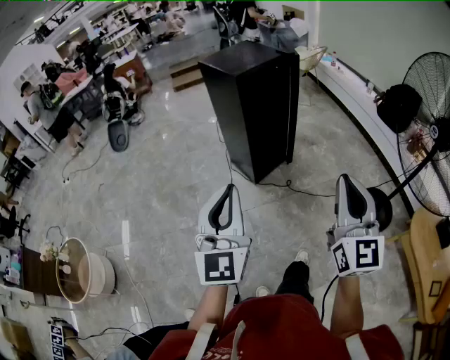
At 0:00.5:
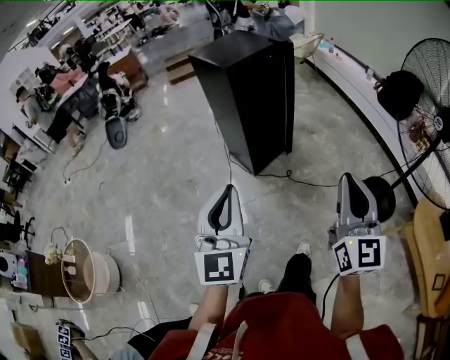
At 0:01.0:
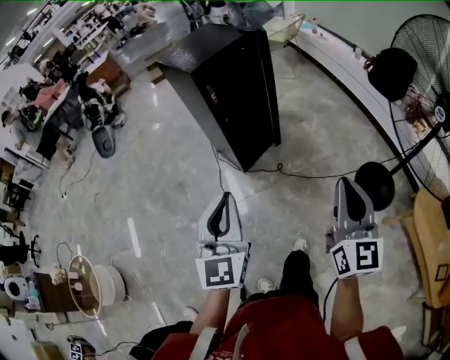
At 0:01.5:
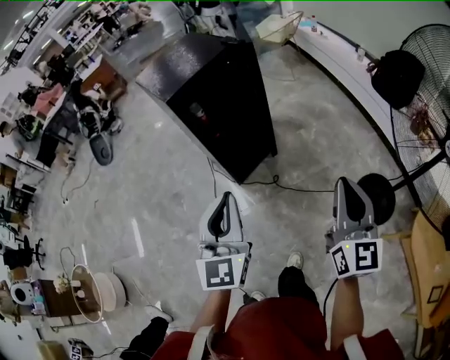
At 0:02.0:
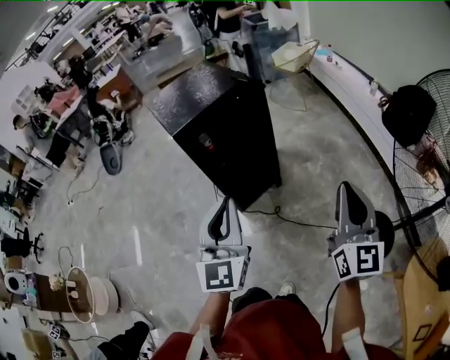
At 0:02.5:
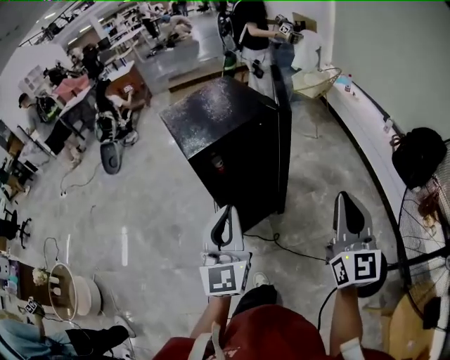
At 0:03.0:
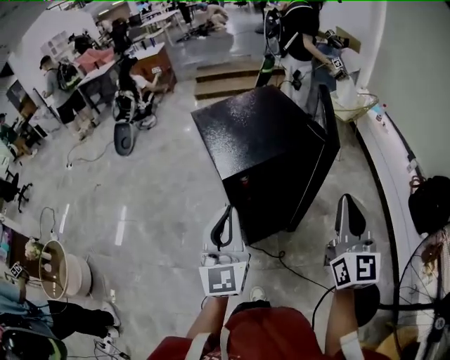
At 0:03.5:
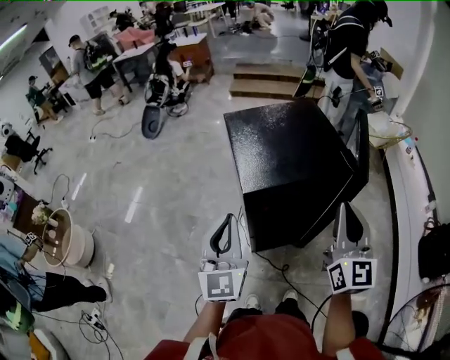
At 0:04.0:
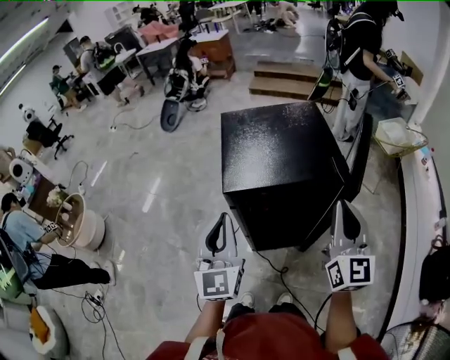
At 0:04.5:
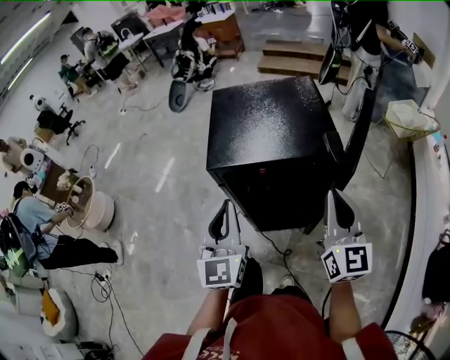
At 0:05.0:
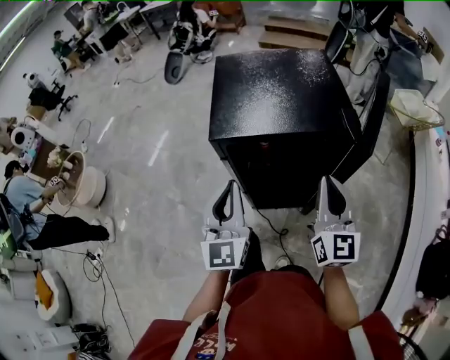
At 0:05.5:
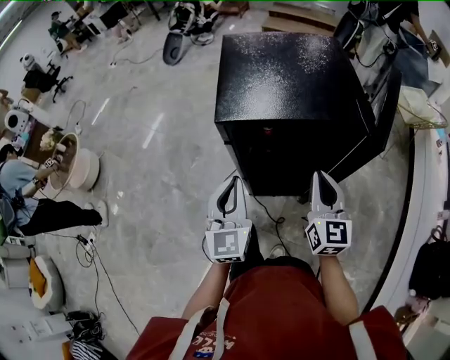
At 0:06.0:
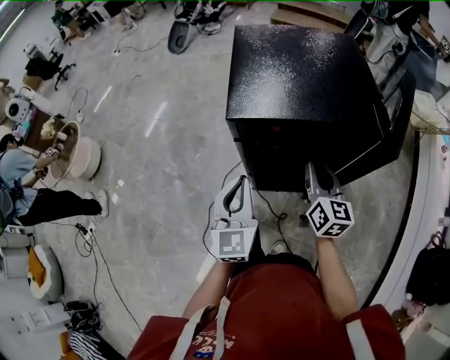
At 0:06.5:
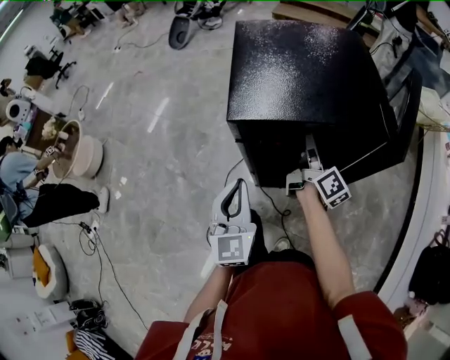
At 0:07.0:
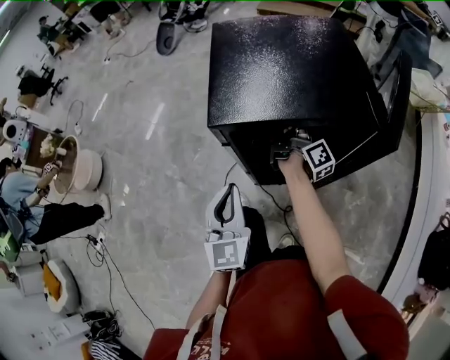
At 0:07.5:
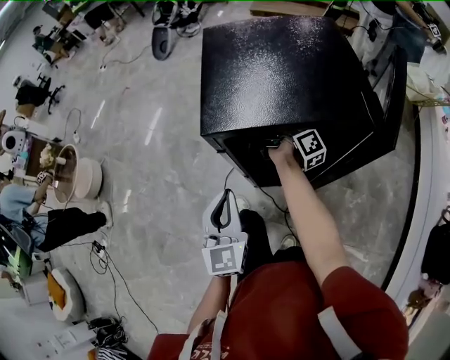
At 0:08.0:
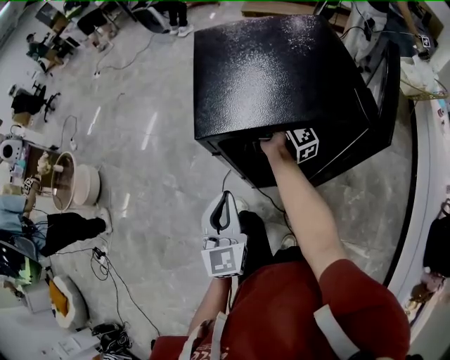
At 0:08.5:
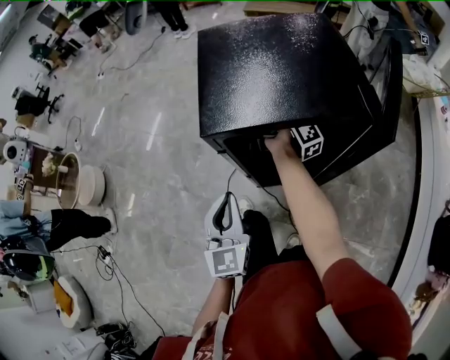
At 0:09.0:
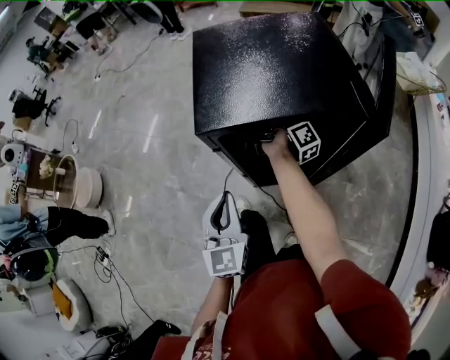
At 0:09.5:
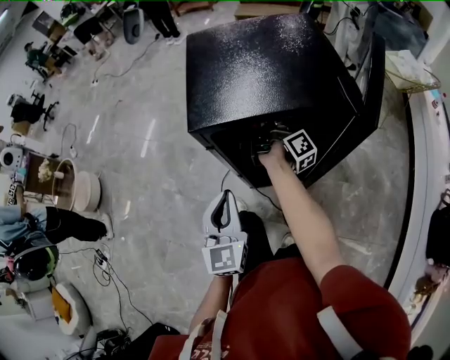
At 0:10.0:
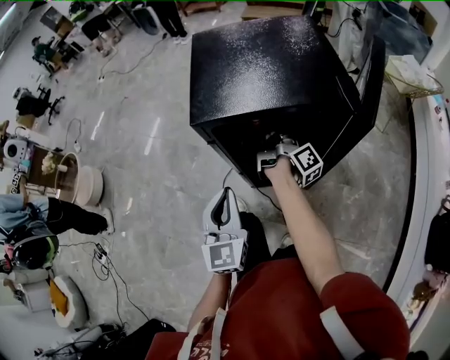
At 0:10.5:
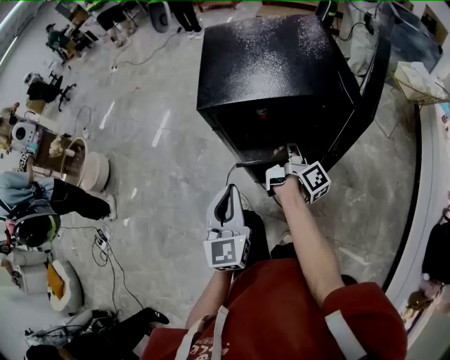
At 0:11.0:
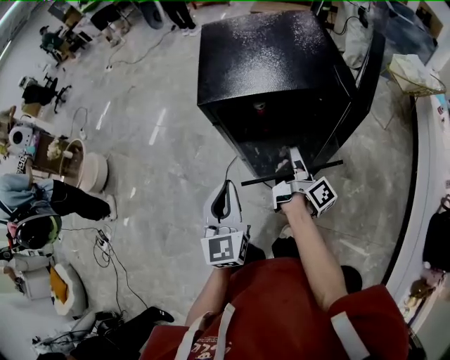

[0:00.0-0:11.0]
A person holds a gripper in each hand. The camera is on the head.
0:00.0 to 0:02.0: Both grippers move forward and to the right, approximately 40 cm.
0:02.0 to 0:03.5: The right gripper ends up roughly 40 cm from where it was, and rotates roughly 20 degrees. Meanwhile the left gripper ends up roughly 30 cm from where it was, and changes its angle by some 30 degrees.
0:03.5 to 0:05.5: The left gripper goes roughly 15 cm downward and to the right; the right gripper goes about 20 cm downward, and swivels approximately 20 degrees.
0:05.5 to 0:07.5: The right gripper moves forward, approximately 25 cm, rolls clockwise, seen from behind, by approximately 80 degrees, and opens its fingers.
0:07.5 to 0:09.0: The right gripper closes.
0:09.0 to 0:11.0: The right gripper moves backward, about 25 cm, while the left gripper goes roughly 5 cm backward.

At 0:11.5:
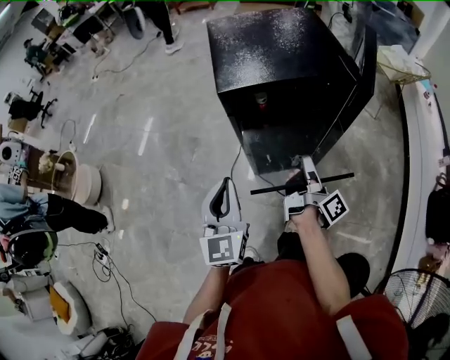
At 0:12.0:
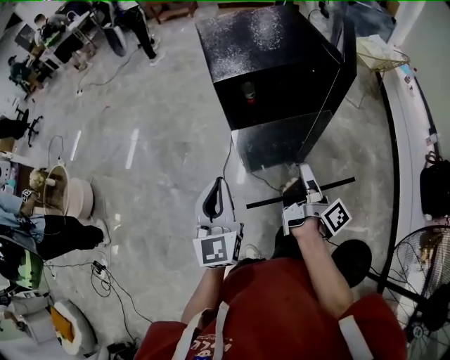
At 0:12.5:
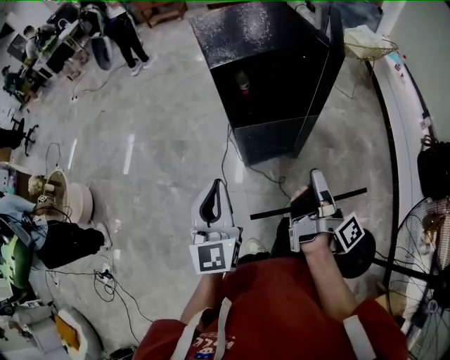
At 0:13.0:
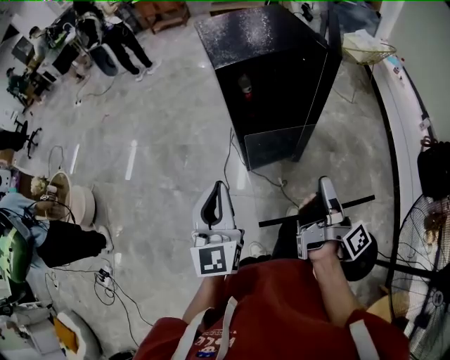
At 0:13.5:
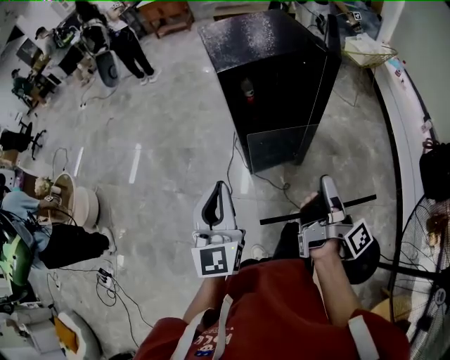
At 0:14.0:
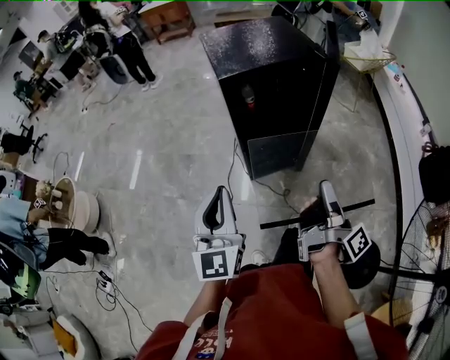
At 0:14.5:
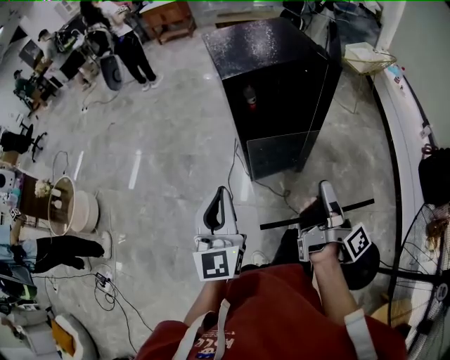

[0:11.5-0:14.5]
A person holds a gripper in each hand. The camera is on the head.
0:11.5 to 0:13.0: The right gripper travels backward and upward by approximately 25 cm, while the left gripper goes about 15 cm backward and upward.
0:13.0 to 0:14.5: The grippers make only small movements.

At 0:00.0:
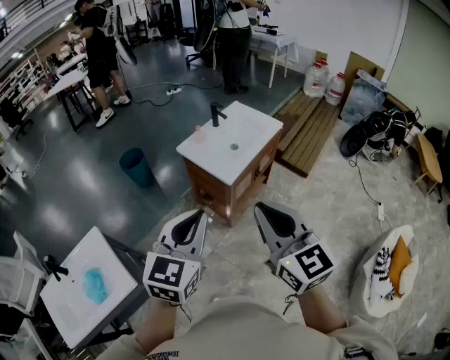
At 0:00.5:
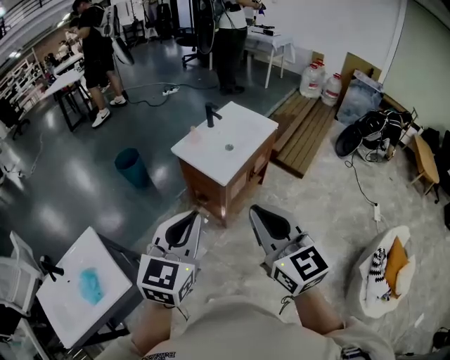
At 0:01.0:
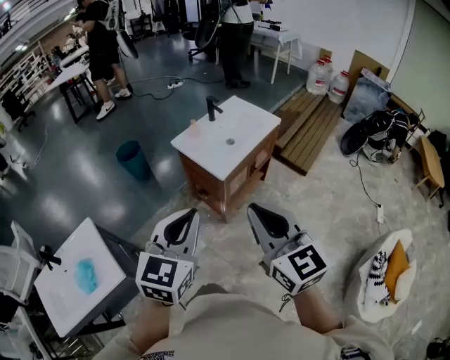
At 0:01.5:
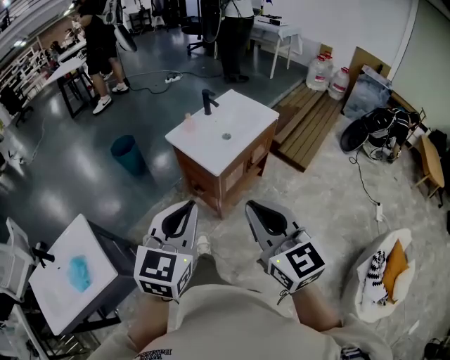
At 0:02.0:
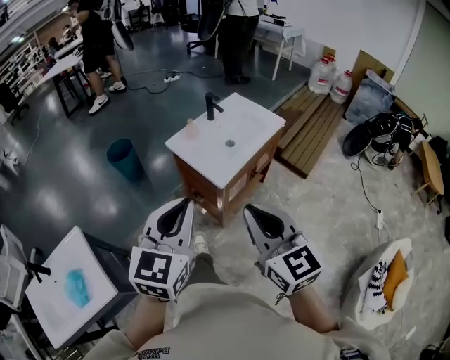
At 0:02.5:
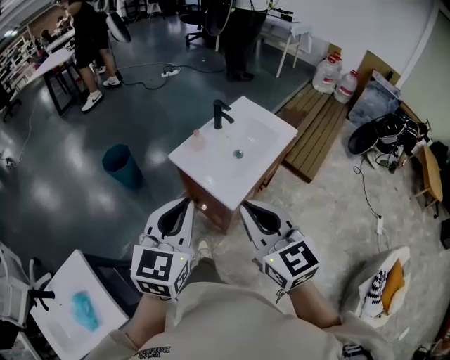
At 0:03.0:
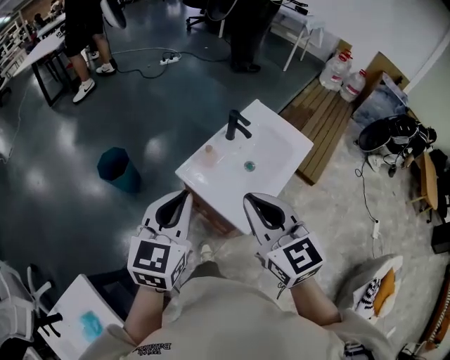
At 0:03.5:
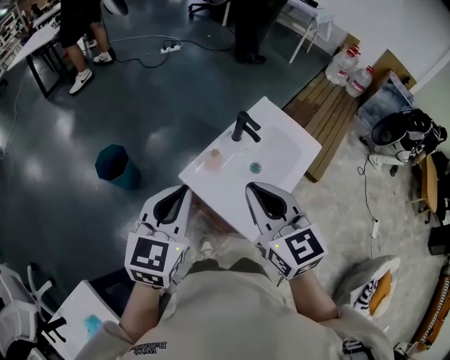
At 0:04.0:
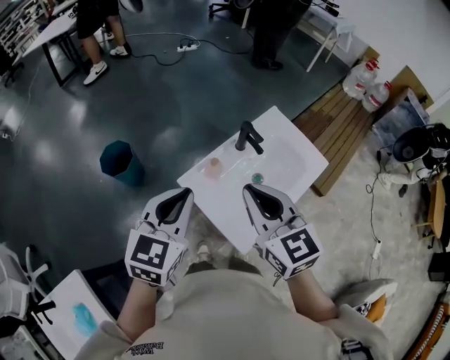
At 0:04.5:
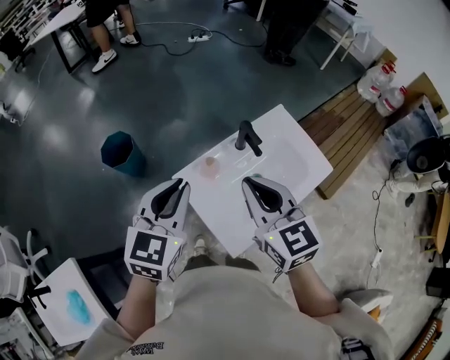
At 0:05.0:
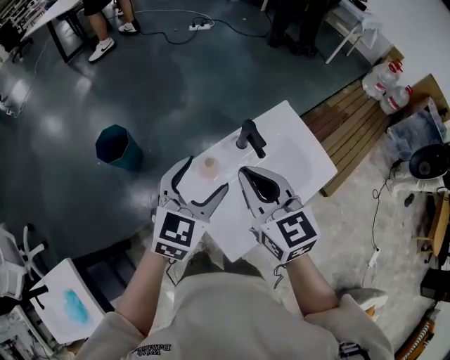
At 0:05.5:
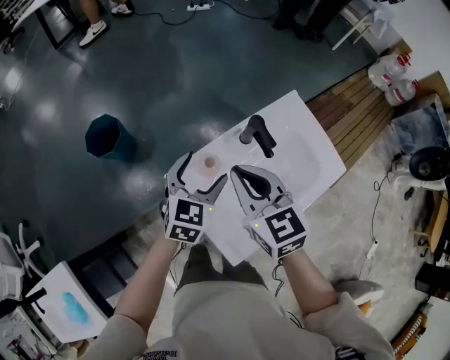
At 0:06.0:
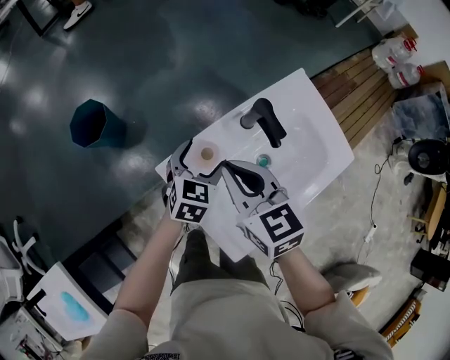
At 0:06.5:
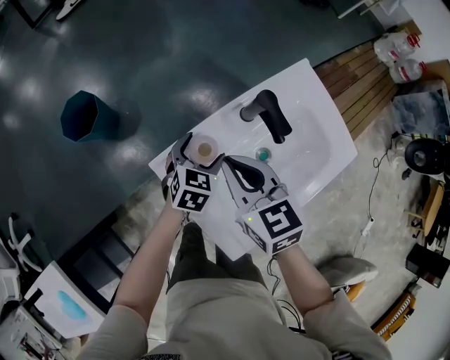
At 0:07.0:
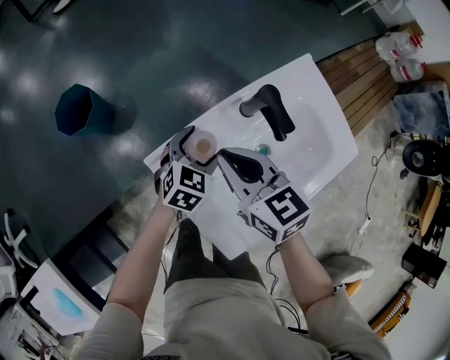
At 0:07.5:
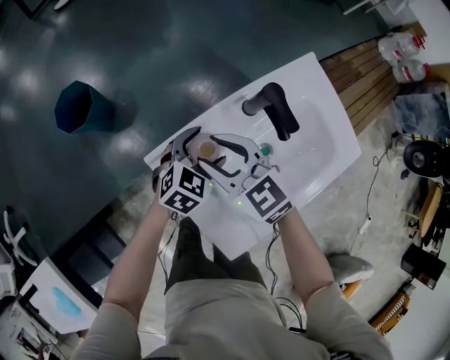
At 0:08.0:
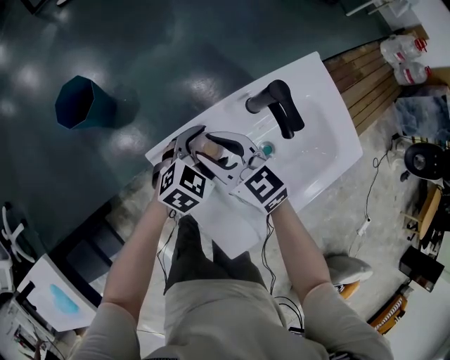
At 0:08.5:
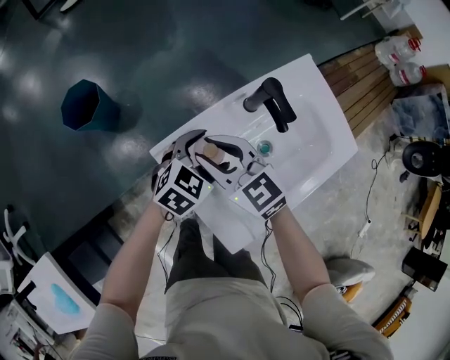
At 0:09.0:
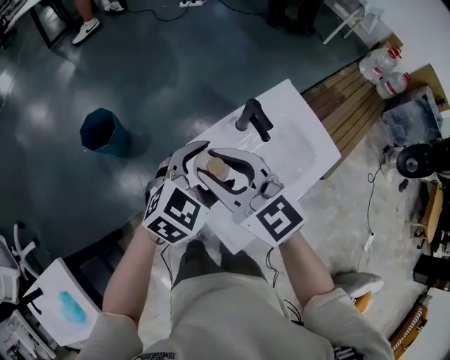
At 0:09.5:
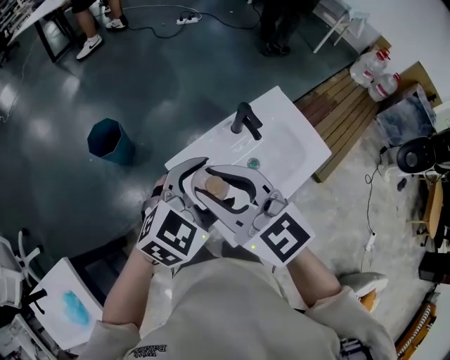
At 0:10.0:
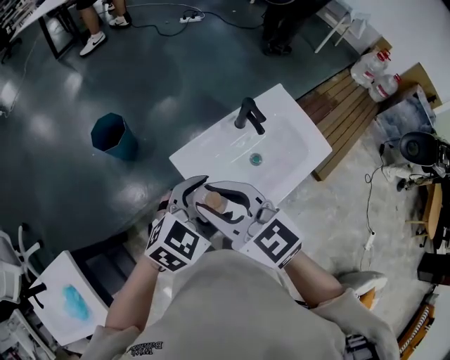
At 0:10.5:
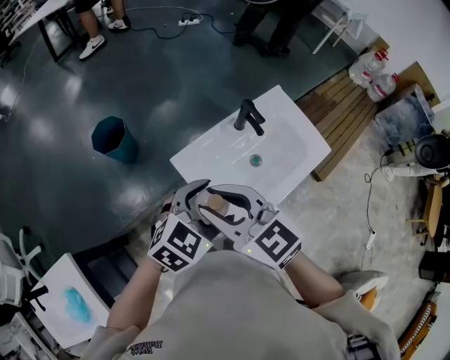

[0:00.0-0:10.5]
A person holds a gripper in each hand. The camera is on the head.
0:00.0 to 0:02.0: The right gripper heads forward and downward, covering about 15 cm. Meanwhile the left gripper goes some 10 cm forward.
0:02.0 to 0:04.0: Both grippers are carried forward, approximately 50 cm.
0:04.0 to 0:06.5: Both grippers travel together downward and forward, about 35 cm. The left gripper rotates about 20 degrees, and opens its fingers. Meanwhile the right gripper changes its angle by about 20 degrees.
0:06.5 to 0:08.5: The right gripper heads to the left, covering about 5 cm, swivels some 20 degrees, and opens. The left gripper ends up roughly 5 cm from where it was.
0:08.5 to 0:10.5: Both grippers travel together upward and backward, about 30 cm.

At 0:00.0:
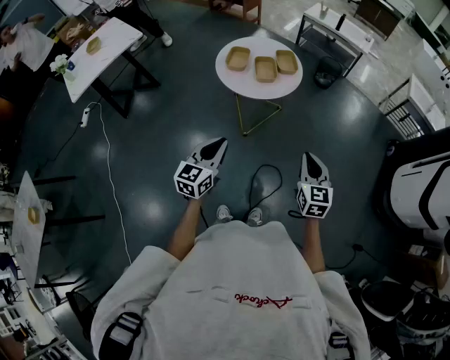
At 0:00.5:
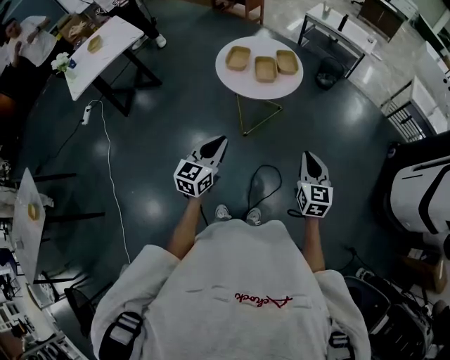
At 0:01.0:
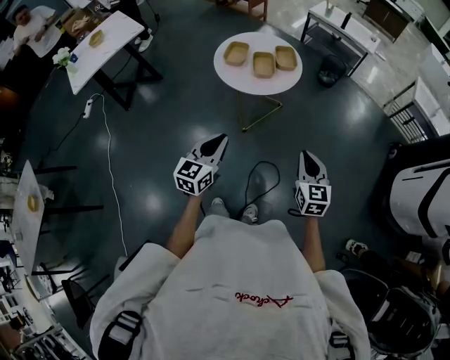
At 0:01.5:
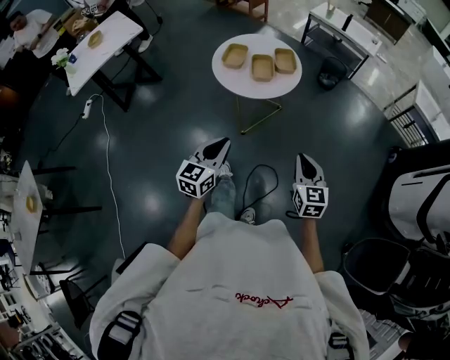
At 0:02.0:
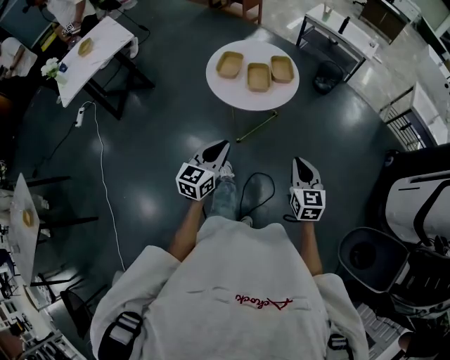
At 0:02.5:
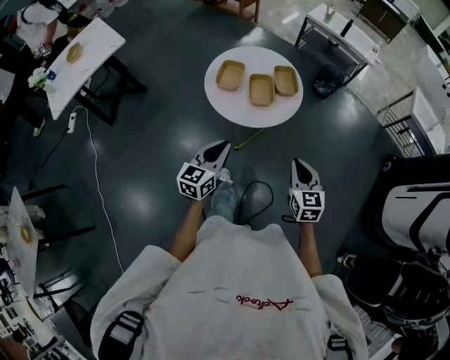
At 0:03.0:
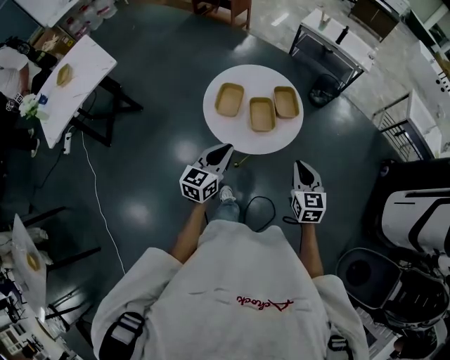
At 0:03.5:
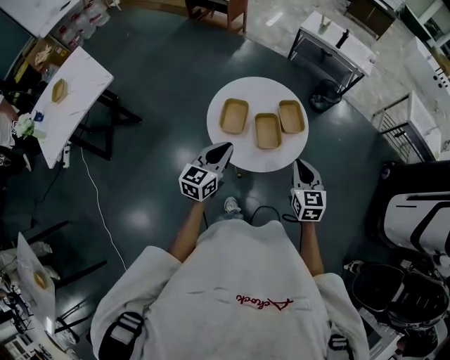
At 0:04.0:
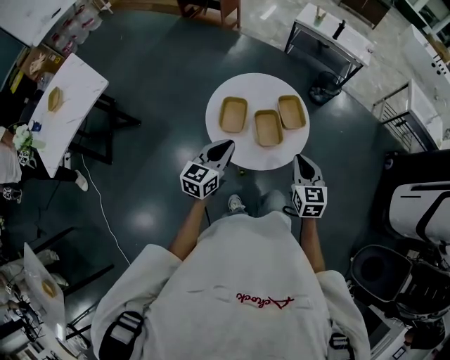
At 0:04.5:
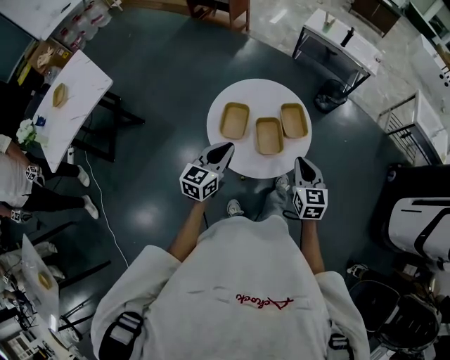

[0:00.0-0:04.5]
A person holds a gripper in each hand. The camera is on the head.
0:00.0 to 0:02.0: Both grippers travel together forward, roughly 10 cm.
0:02.0 to 0:04.5: Both grippers move forward and to the left, roughly 35 cm.
